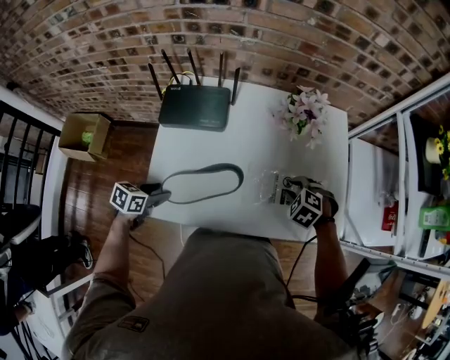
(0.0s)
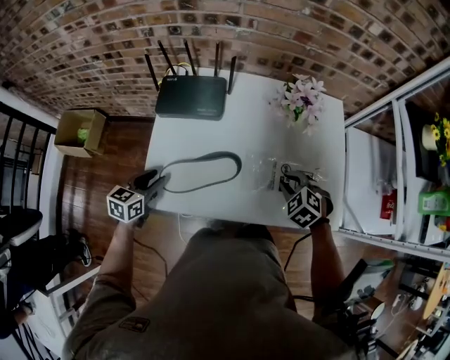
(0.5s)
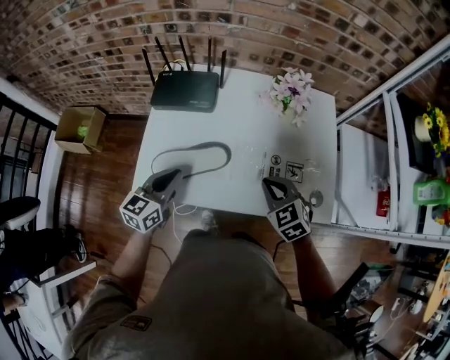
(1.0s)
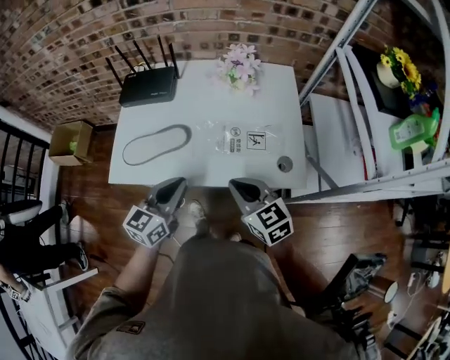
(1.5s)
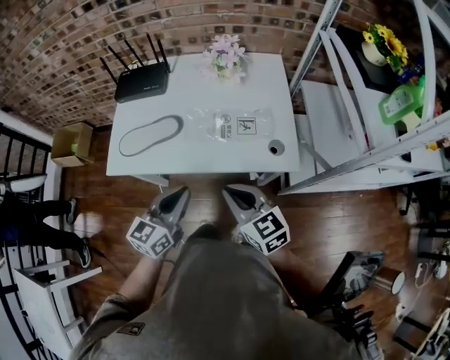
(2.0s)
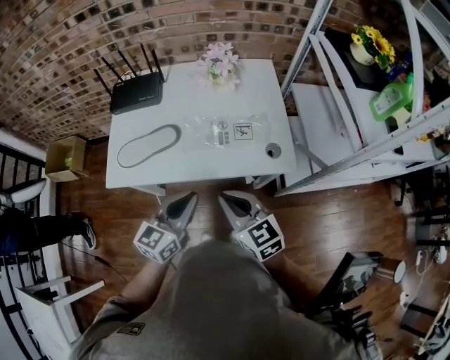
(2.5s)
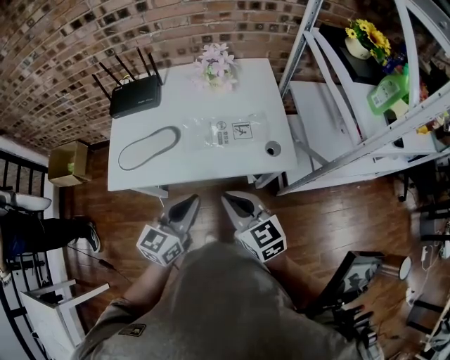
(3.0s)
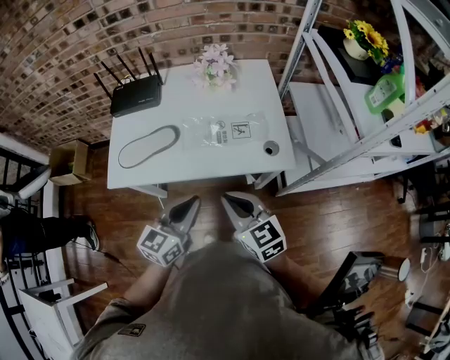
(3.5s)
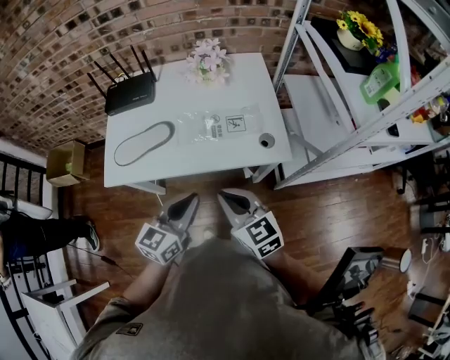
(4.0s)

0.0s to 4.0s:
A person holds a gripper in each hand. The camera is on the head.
0.0s to 2.0s: The right gripper moves backward and upward, some 30 cm, tips its fingers upward by roughly 50 degrees, and closes its fingers. Meanwhile the left gripper shifts approximately 40 cm to the right, upward and backward, angles its fingers upward, by about 40 degrees, and closes its fingers.
2.0s to 4.0s: The grippers stay close to where they were, moving slightly.

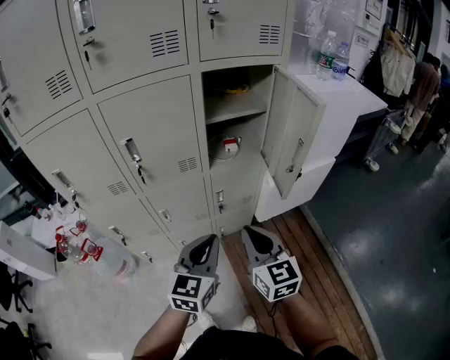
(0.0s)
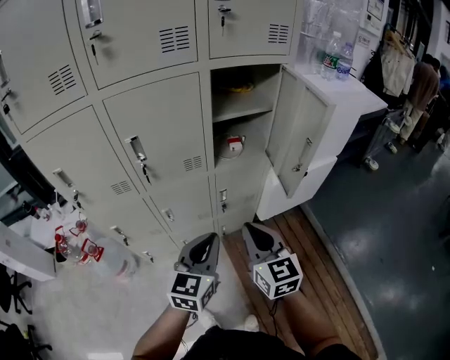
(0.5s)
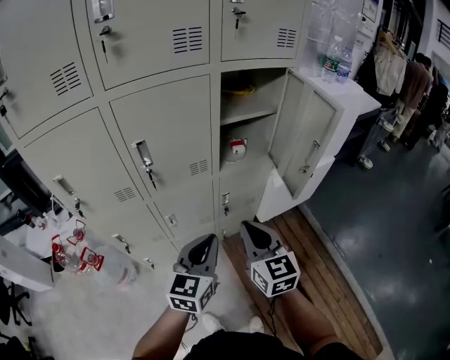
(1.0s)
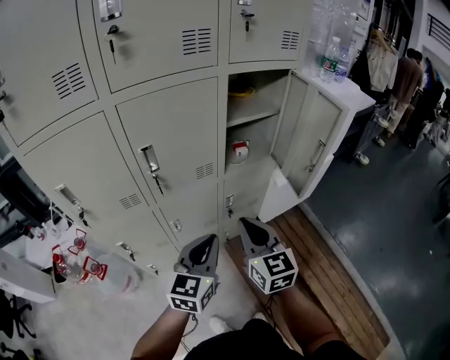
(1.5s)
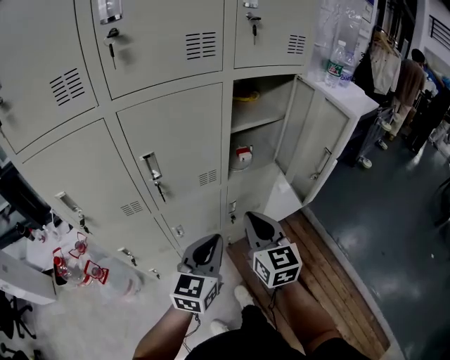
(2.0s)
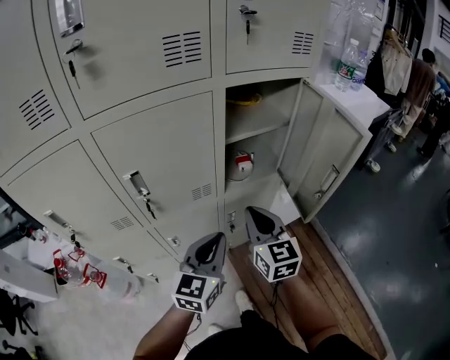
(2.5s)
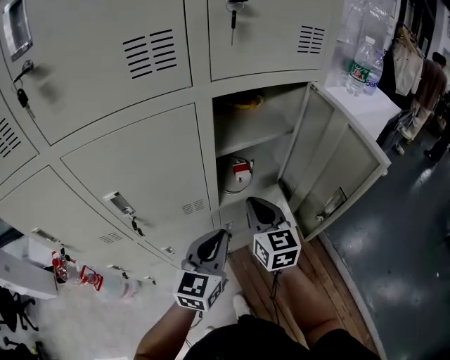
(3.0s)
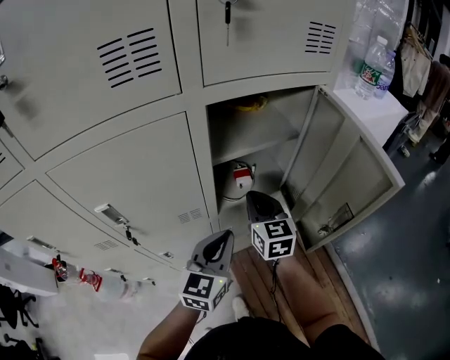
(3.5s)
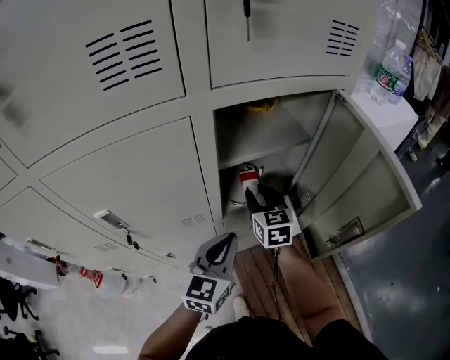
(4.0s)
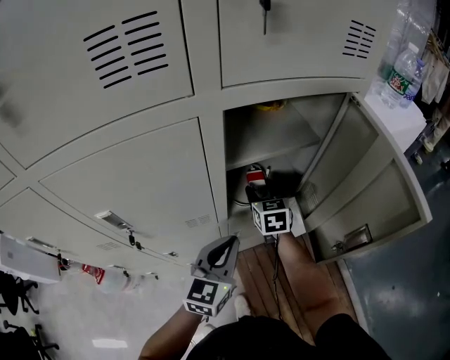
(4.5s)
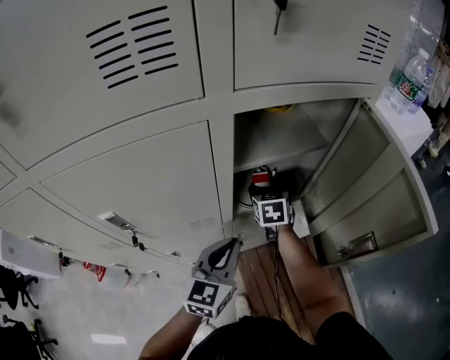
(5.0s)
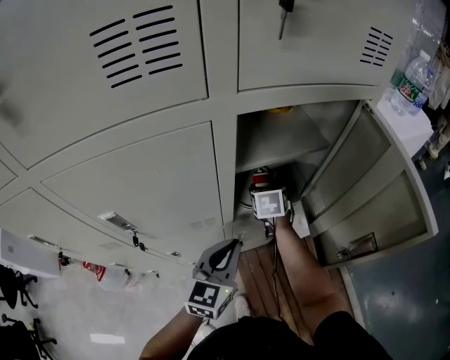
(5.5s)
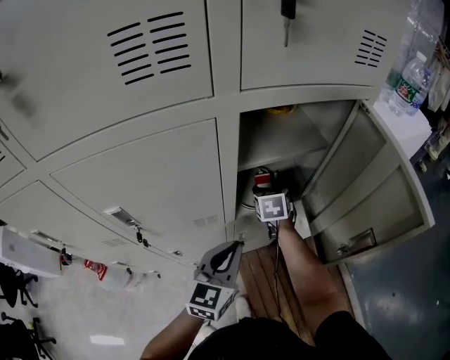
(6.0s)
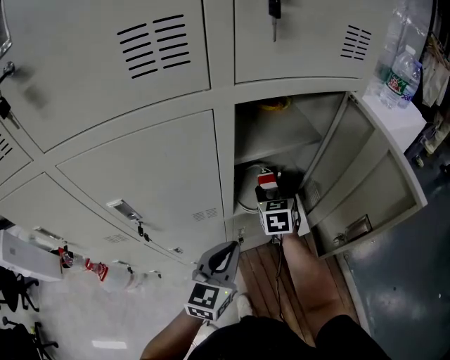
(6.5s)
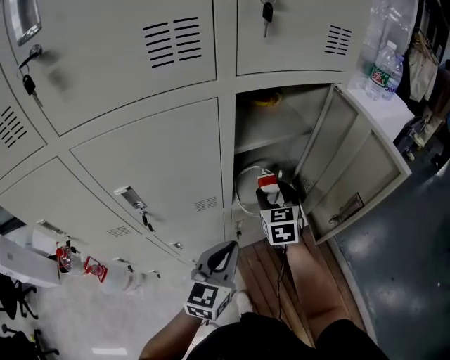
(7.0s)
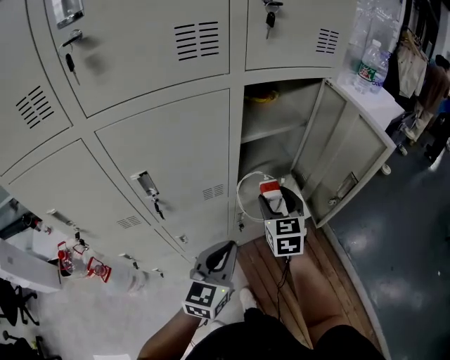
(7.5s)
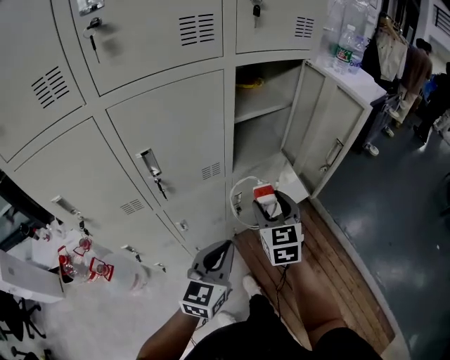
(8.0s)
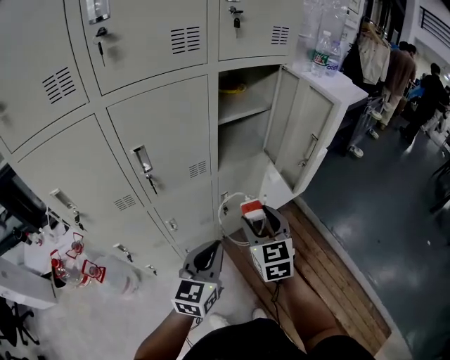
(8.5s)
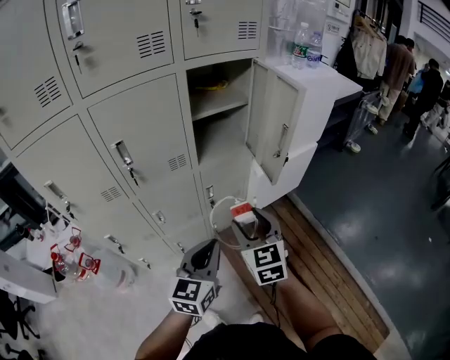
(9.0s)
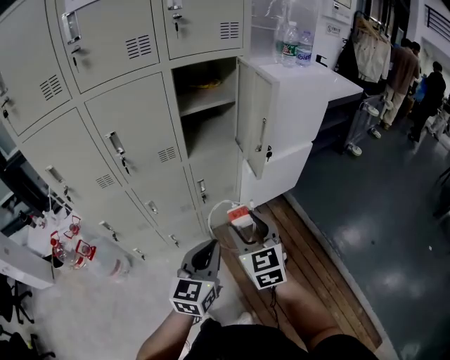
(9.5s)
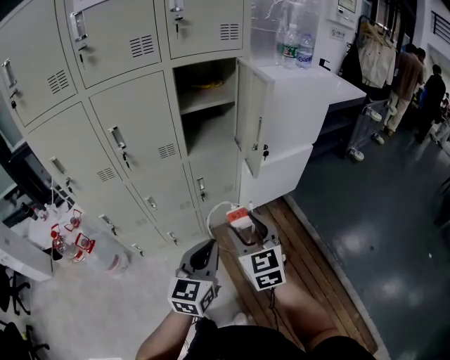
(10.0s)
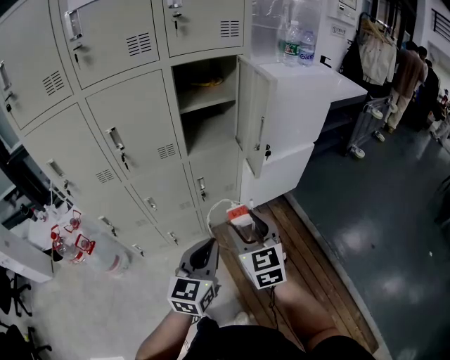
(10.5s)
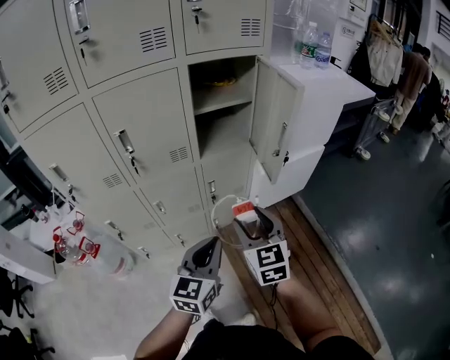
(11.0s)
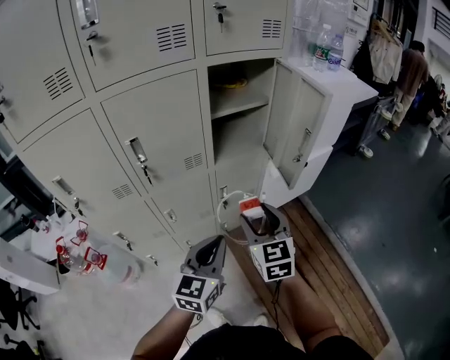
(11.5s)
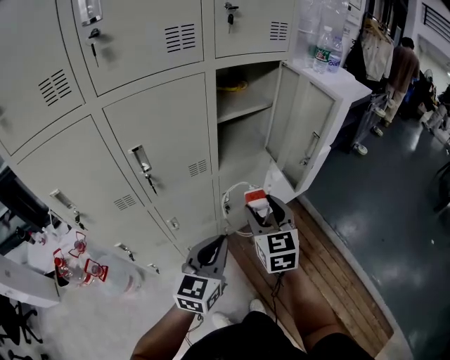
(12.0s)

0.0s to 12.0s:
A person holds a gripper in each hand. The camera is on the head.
0.0s to 2.0s: Both grippers travel together to the left and forward, about 10 cm.
2.0s to 4.0s: Both grippers travel together forward, some 25 cm. The right gripper opens its fingers.
4.0s to 6.0s: The right gripper heads downward and forward, covering about 10 cm, turns by some 20 degrees, and opens.
6.0s to 8.0s: Both grippers travel together backward, some 25 cm. The right gripper changes its angle by about 20 degrees.
8.0s to 10.0s: The left gripper moves to the right and backward, some 25 cm, while the right gripper heads backward and to the right, covering roughly 25 cm.
10.0s to 12.0s: The right gripper is displaced forward and to the left by approximately 20 cm. The left gripper is displaced to the left and forward by about 20 cm.

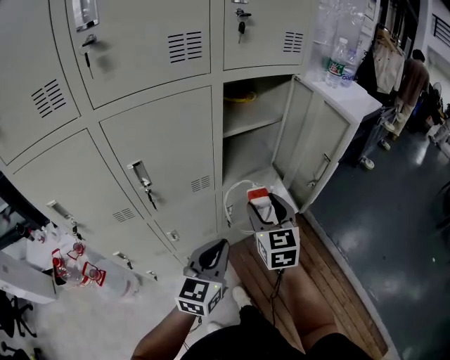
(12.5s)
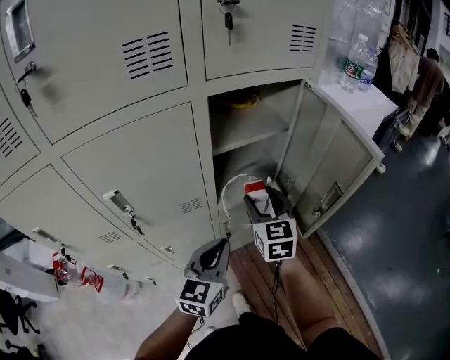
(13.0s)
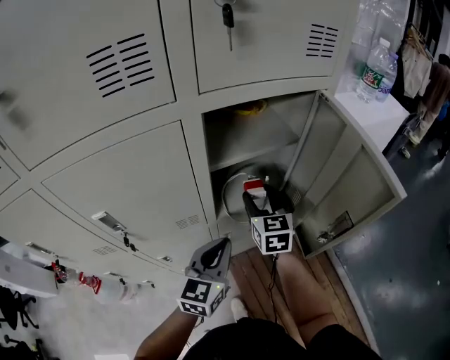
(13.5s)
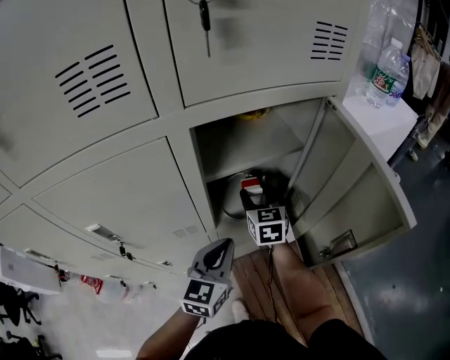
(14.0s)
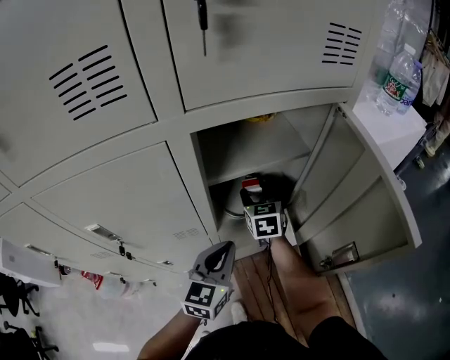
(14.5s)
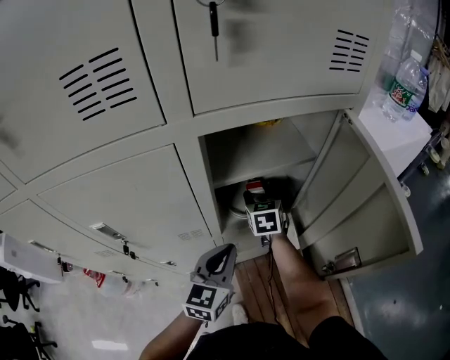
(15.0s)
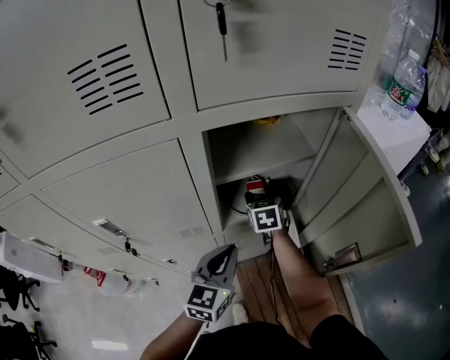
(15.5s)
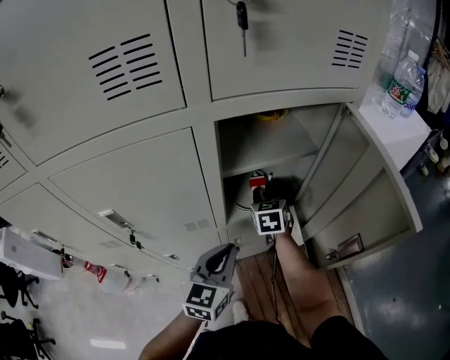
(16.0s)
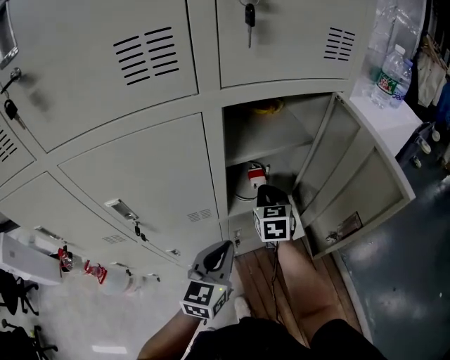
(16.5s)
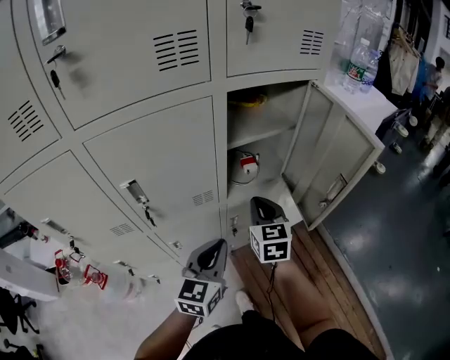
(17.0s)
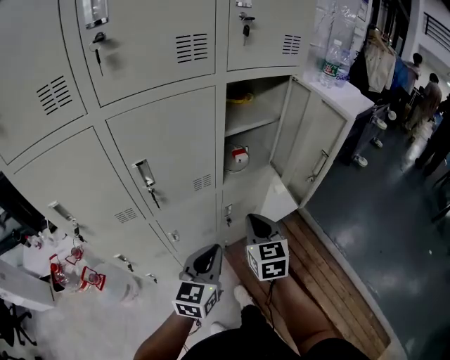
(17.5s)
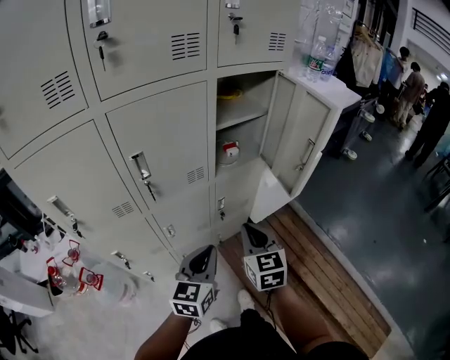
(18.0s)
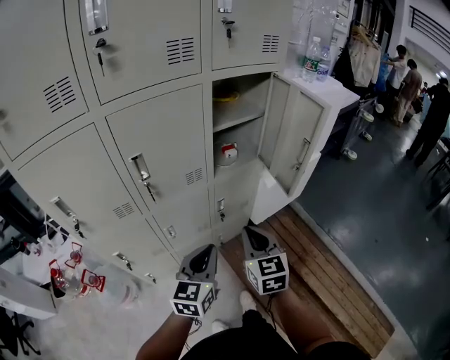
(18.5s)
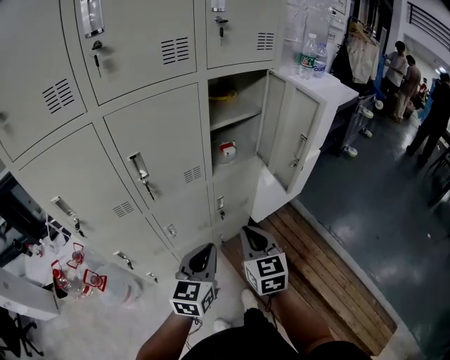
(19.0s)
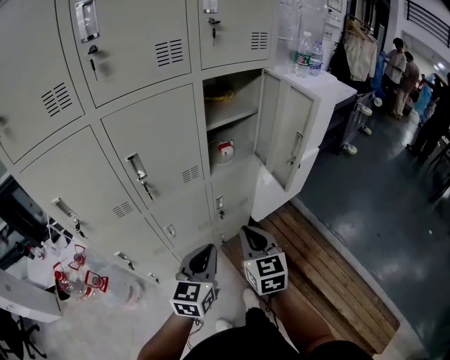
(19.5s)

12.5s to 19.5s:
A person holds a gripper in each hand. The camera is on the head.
12.5s to 14.5s: The grippers both shift forward by some 25 cm.
14.5s to 16.0s: The right gripper closes its fingers.
16.0s to 17.5s: The right gripper heads backward, covering approximately 35 cm, and closes up. The left gripper is displaced backward by some 20 cm.
17.5s to 19.5s: The right gripper heads backward, covering roughly 10 cm; the left gripper travels backward by approximately 5 cm.

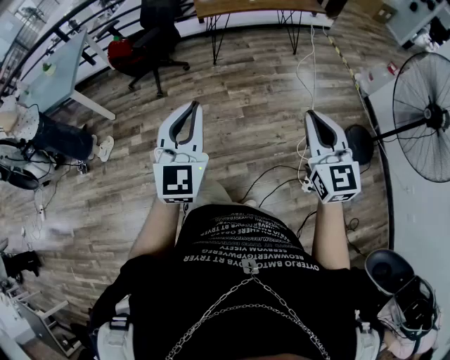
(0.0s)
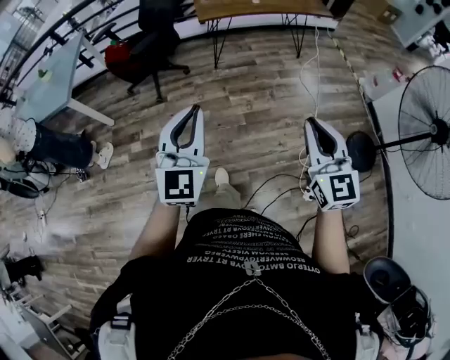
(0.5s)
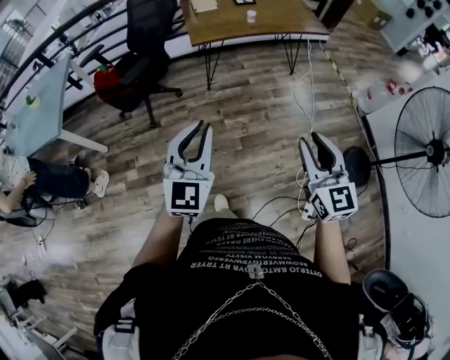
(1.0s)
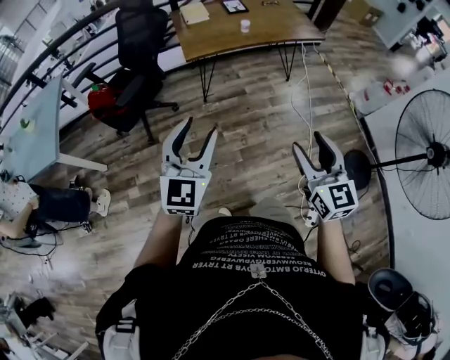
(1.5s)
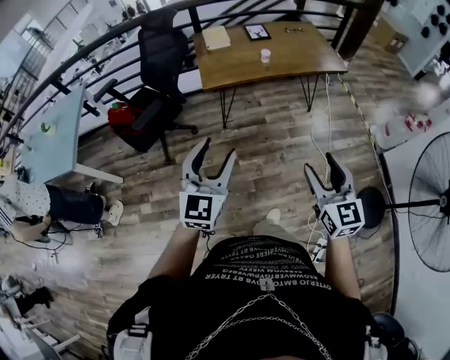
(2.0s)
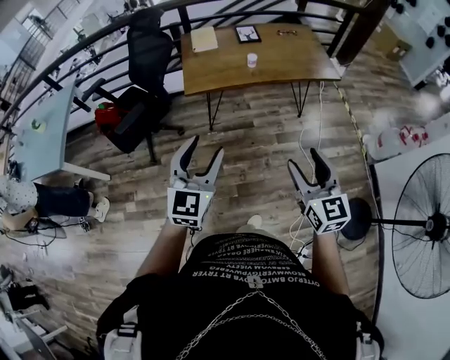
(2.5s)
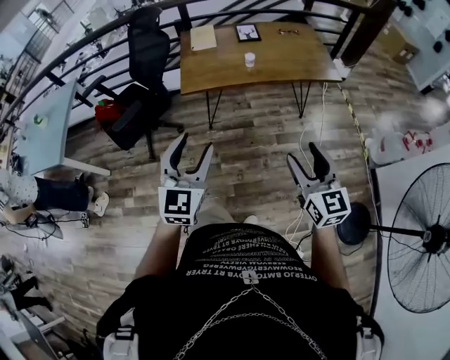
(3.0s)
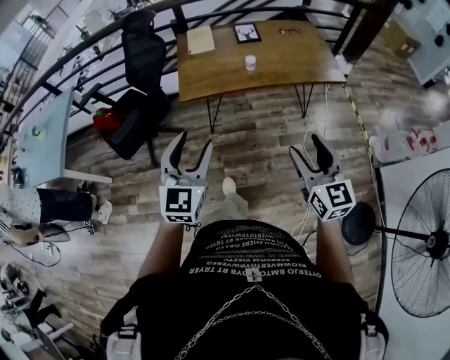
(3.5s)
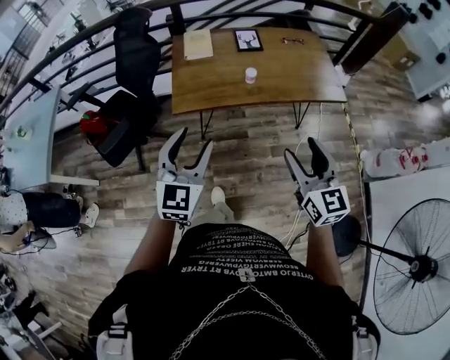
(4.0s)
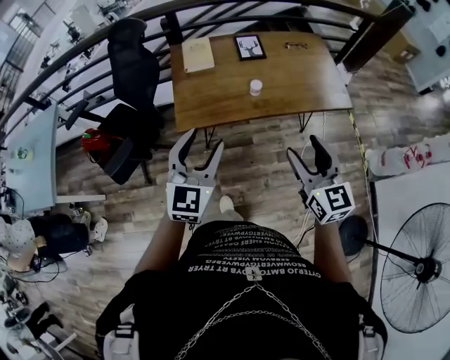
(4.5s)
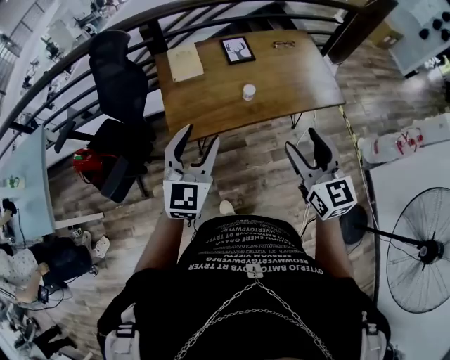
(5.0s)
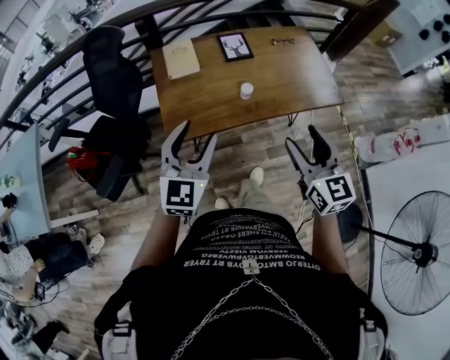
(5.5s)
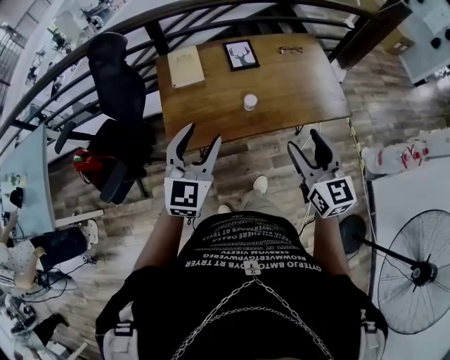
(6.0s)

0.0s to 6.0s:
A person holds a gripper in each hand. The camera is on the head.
0.0s to 2.0s: The grippers both shift forward by roughly 40 cm. The left gripper opens. Meanwhile the right gripper opens its fingers.
2.0s to 4.0s: Both grippers move forward, some 30 cm.
4.0s to 6.0s: The two grippers go some 20 cm forward.
